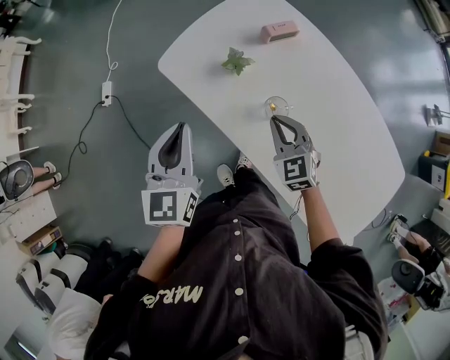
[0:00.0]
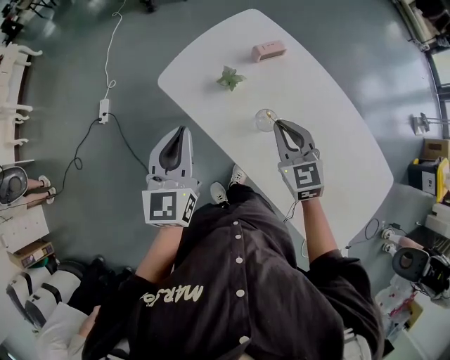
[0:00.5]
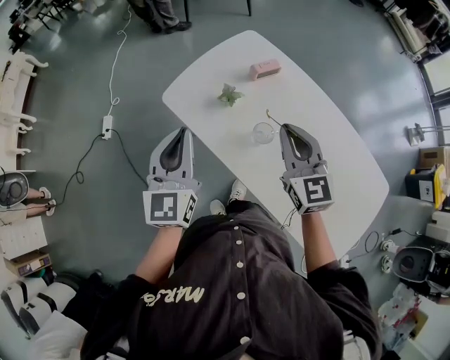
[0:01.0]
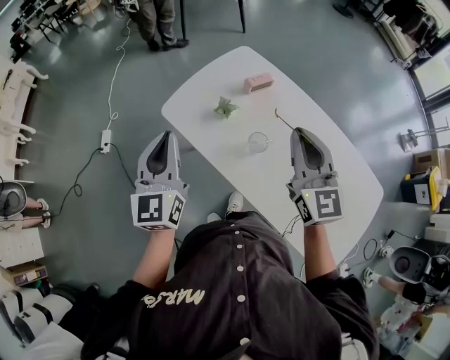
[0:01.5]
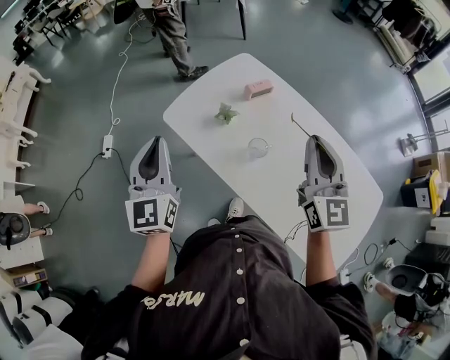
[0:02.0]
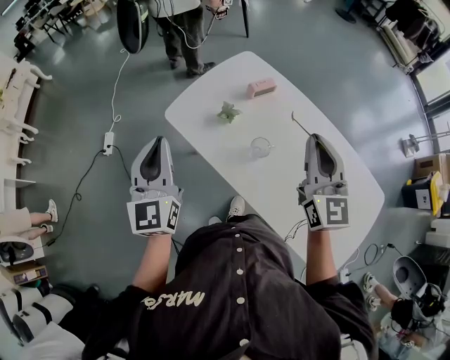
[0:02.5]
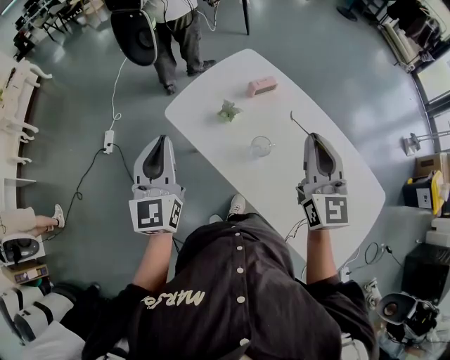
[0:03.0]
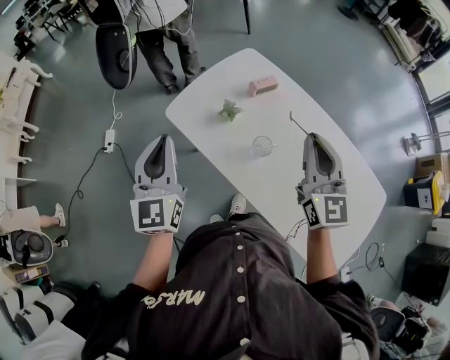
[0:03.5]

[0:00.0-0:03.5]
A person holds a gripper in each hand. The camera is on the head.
0:00.0 to 0:02.0: The right gripper heads upward, covering some 30 cm, and angles its fingers upward, by roughly 40 degrees. Meanwhile the left gripper goes roughly 10 cm upward.
0:02.0 to 0:03.5: The grippers stay close to where they were, moving slightly.

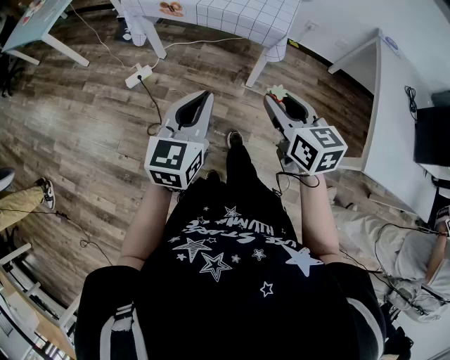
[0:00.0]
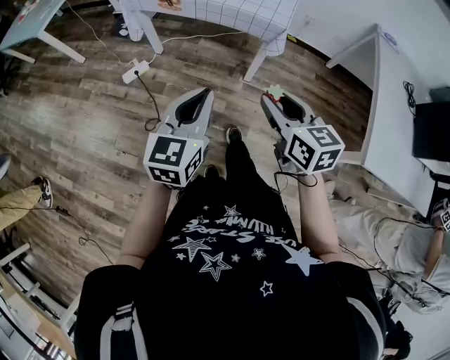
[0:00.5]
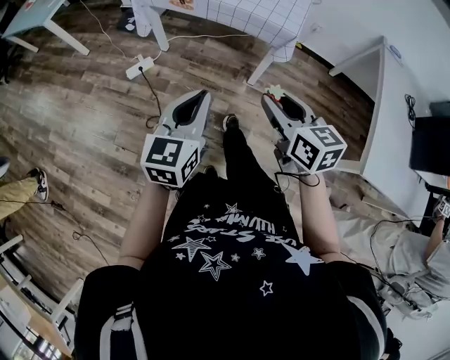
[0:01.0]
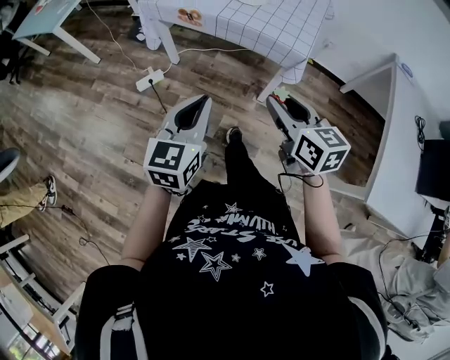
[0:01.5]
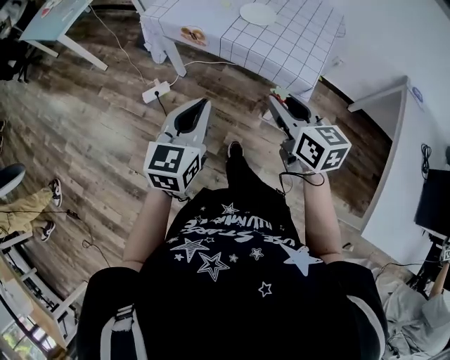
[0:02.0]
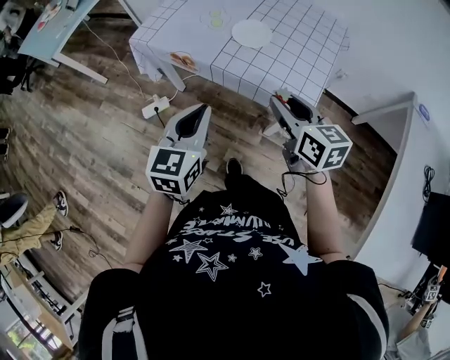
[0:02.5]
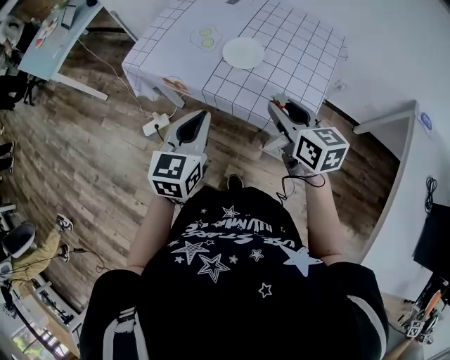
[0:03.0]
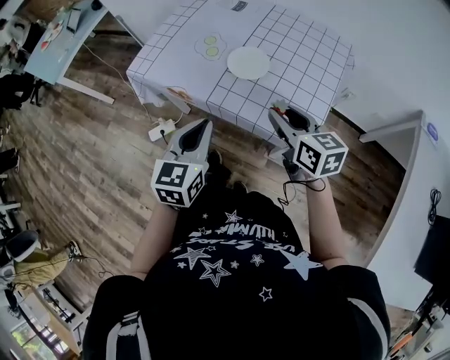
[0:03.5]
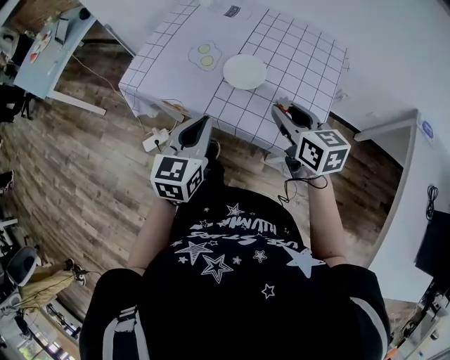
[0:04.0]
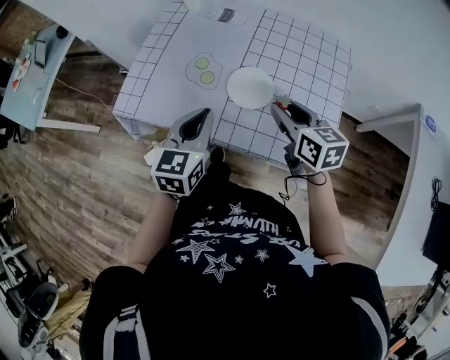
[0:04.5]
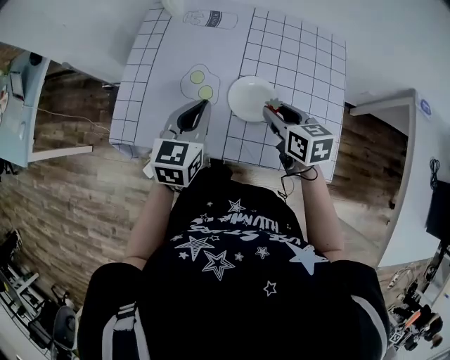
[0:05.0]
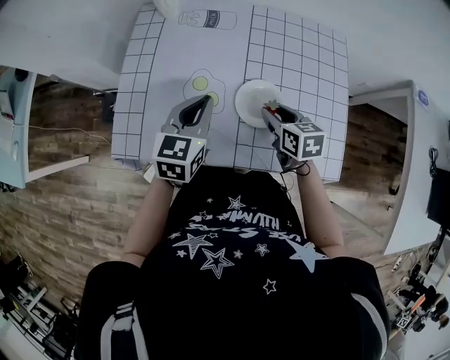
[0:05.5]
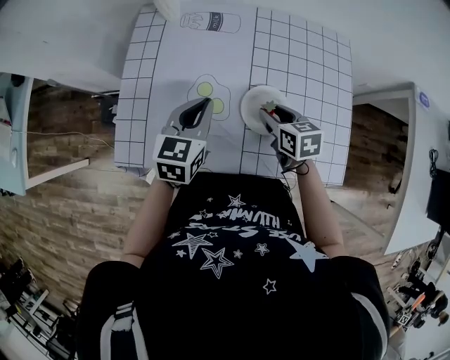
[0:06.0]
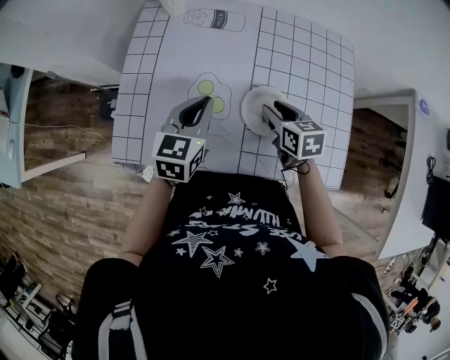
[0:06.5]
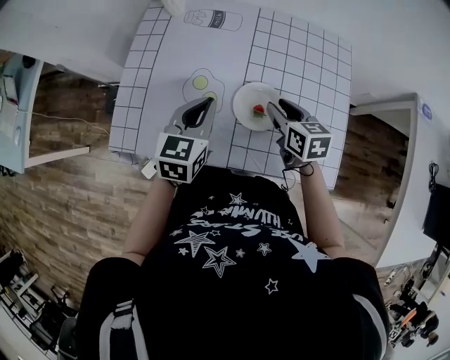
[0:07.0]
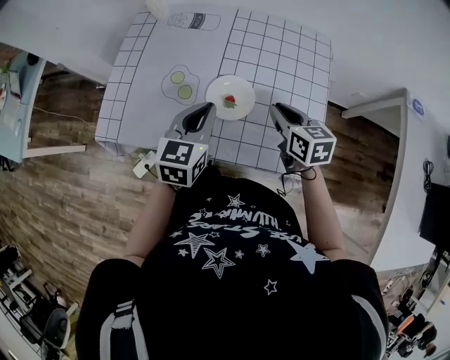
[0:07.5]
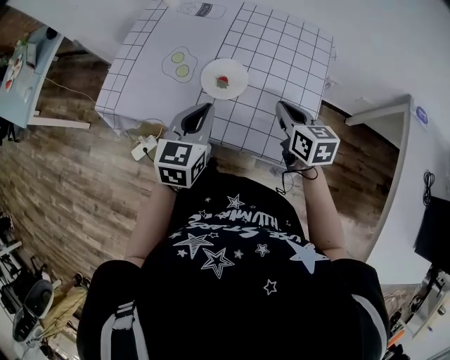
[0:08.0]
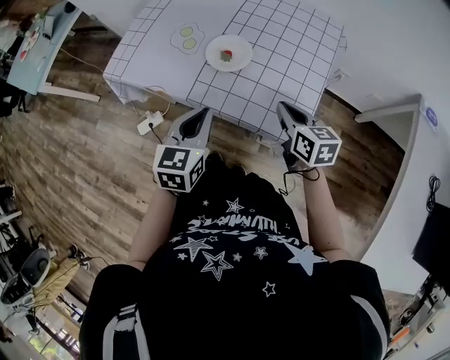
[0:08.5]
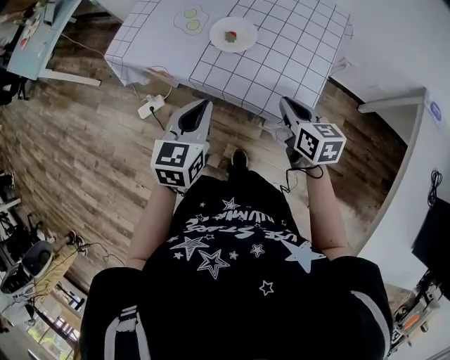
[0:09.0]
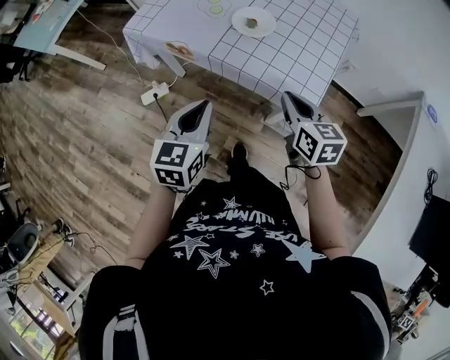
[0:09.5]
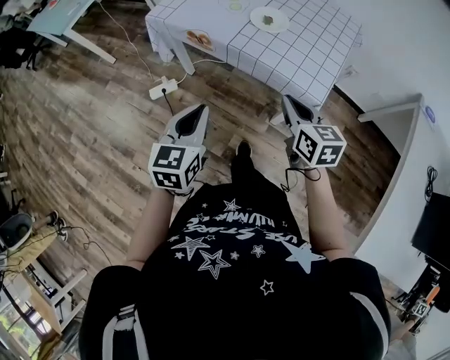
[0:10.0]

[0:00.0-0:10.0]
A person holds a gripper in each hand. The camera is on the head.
0:00.0 to 0:02.0: The grippers both shift forward by about 20 cm.
0:02.0 to 0:04.0: The two grippers go about 25 cm forward.
0:04.0 to 0:06.0: The right gripper heads forward, downward and to the left, covering approximately 25 cm, and rotates about 30 degrees, while the left gripper shifts about 25 cm forward, and rotates about 20 degrees.
0:06.0 to 0:08.0: The left gripper heads backward and to the right, covering approximately 20 cm. Meanwhile the right gripper heads to the right, backward and upward, covering roughly 20 cm, and closes.
0:08.0 to 0:10.0: The two grippers go some 30 cm backward and to the left.

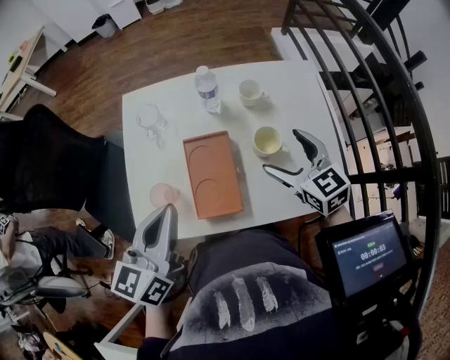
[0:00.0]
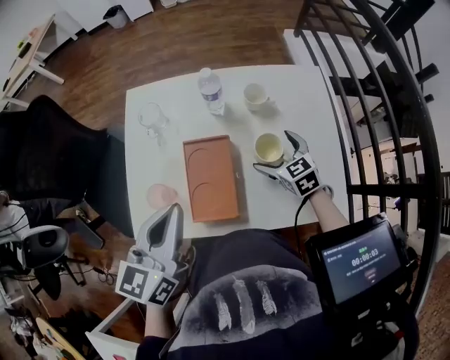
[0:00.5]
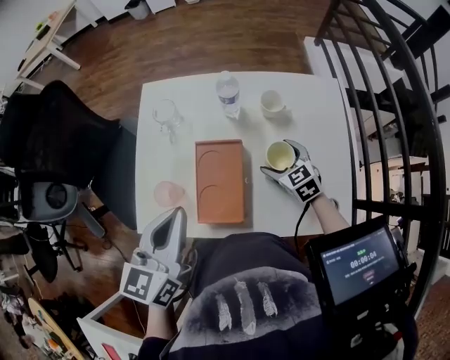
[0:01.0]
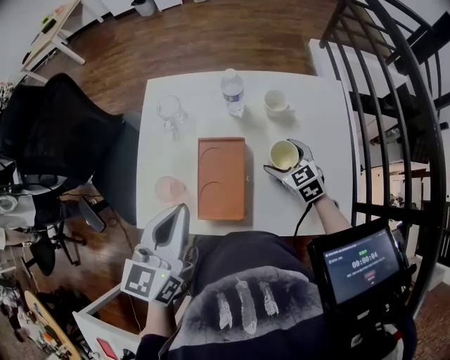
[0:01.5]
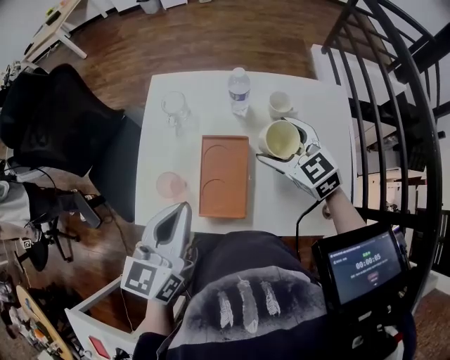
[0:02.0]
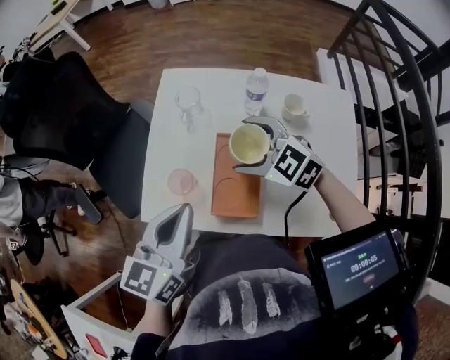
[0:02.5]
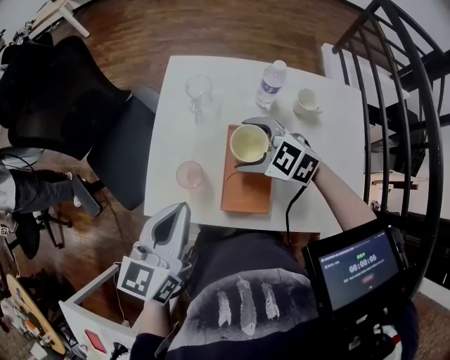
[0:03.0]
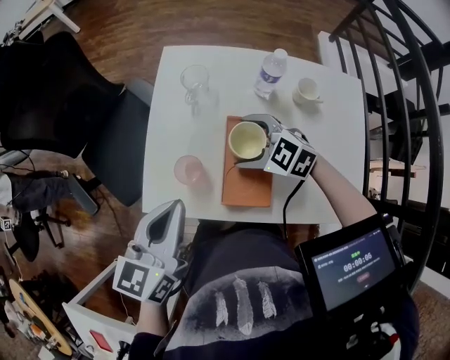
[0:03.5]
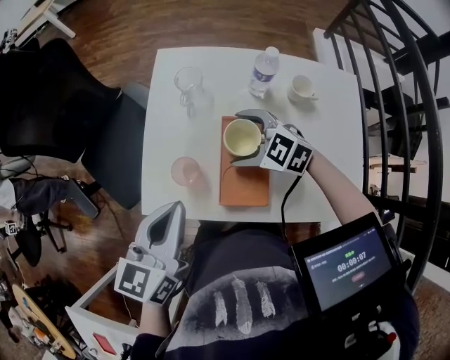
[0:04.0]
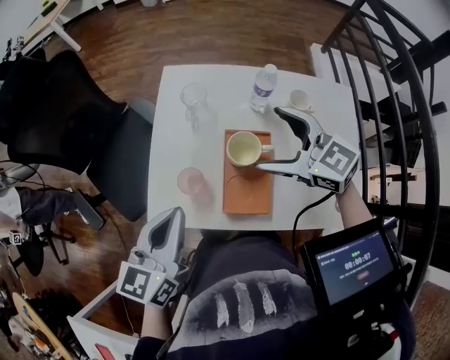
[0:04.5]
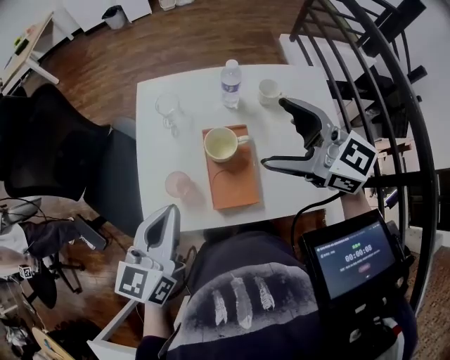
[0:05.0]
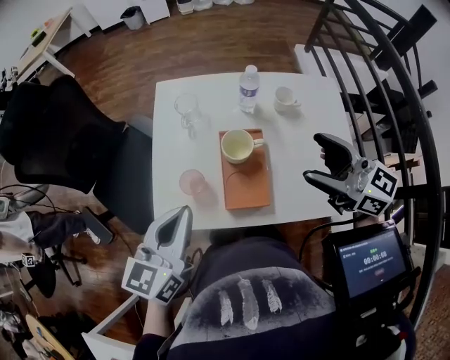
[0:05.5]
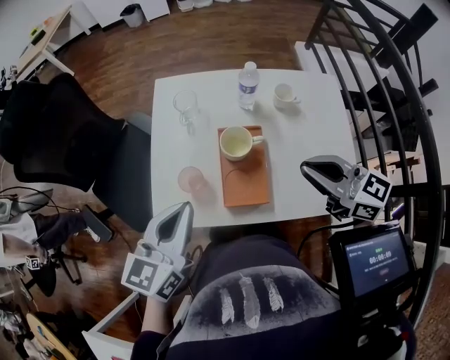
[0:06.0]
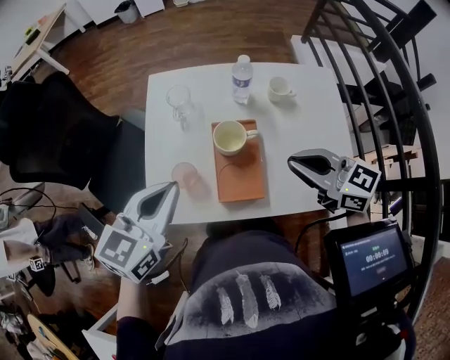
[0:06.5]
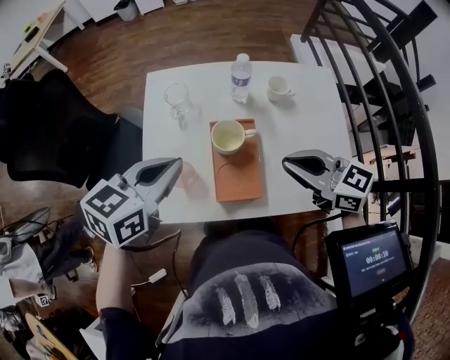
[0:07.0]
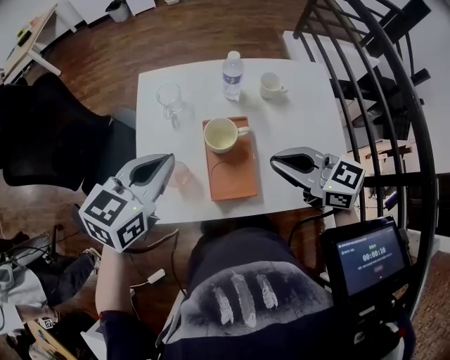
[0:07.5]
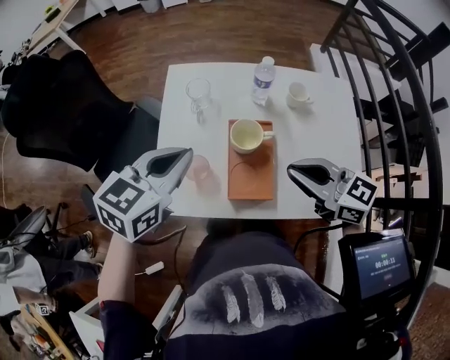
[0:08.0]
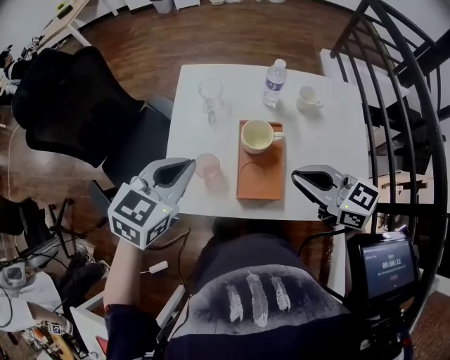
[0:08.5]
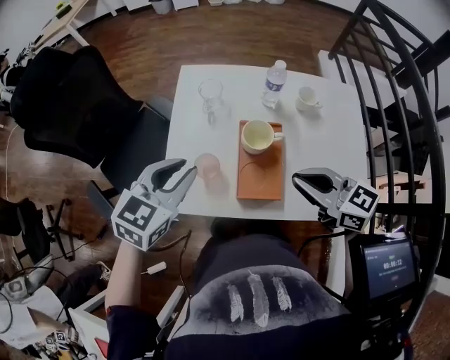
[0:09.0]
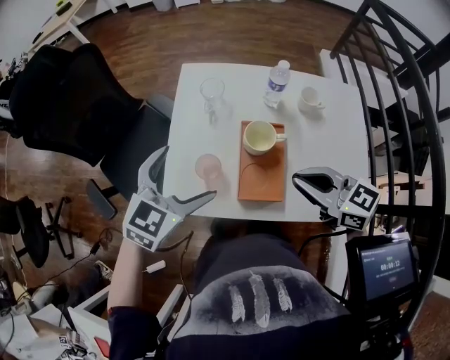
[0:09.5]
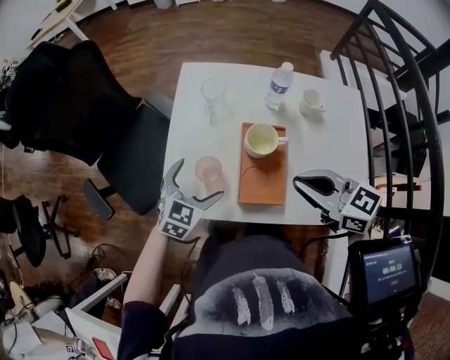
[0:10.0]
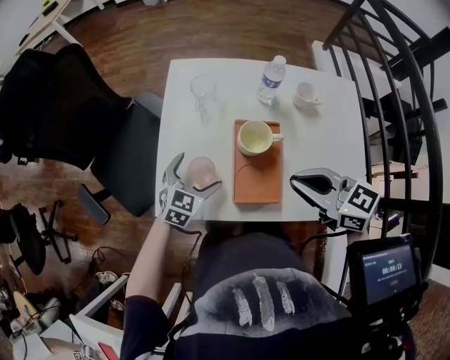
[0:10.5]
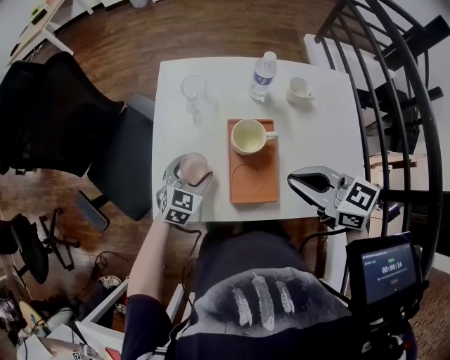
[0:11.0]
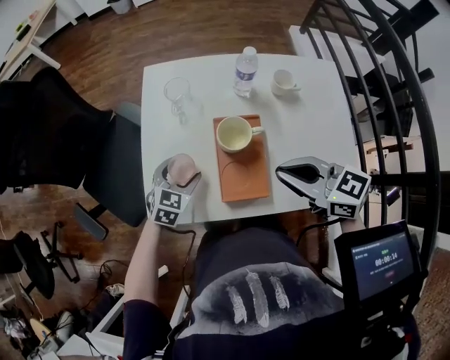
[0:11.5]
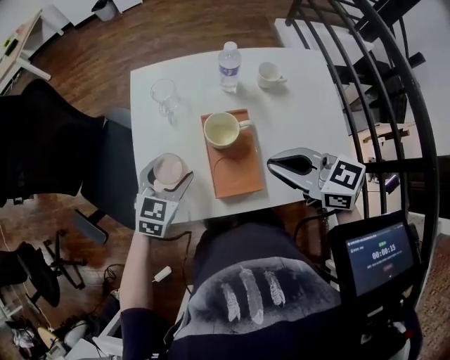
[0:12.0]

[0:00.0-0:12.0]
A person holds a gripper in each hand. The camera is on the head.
0:00.0 to 0:02.0: The right gripper goes approximately 10 cm forward and to the left, reaches about 15 cm downward, then returns, and changes its angle by some 20 degrees.
0:02.0 to 0:04.0: The left gripper heads to the left, covering roughly 10 cm, while the right gripper heads to the left and downward, covering some 20 cm, and rotates approximately 30 degrees.
0:04.0 to 0:06.0: The right gripper travels upward, backward and to the right by approximately 25 cm, swivels approximately 50 degrees, and closes.
0:06.0 to 0:08.0: The right gripper moves roughly 5 cm. The left gripper heads forward, covering some 10 cm.
0:08.0 to 0:10.0: The left gripper travels downward by approximately 15 cm, and opens its fingers.
0:10.0 to 0:12.0: The left gripper closes its fingers.

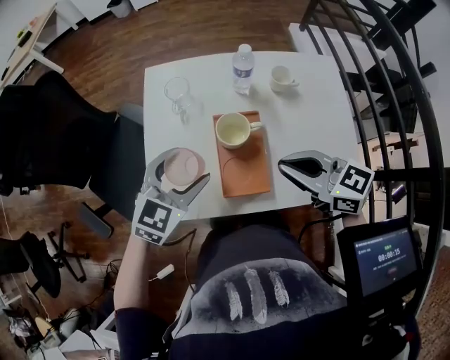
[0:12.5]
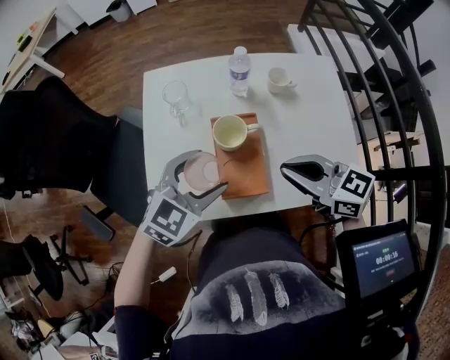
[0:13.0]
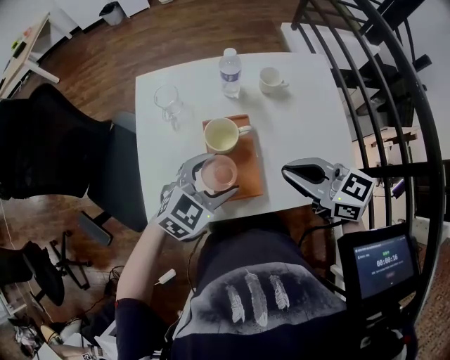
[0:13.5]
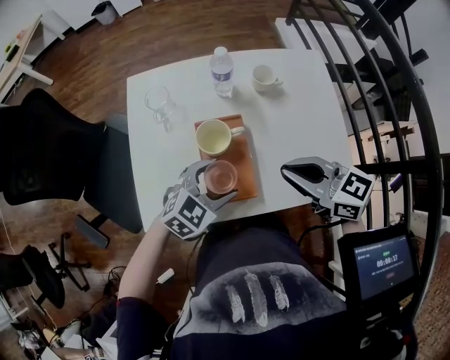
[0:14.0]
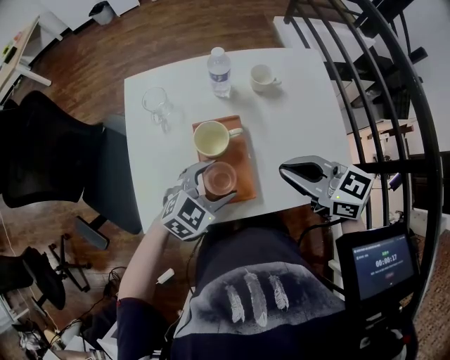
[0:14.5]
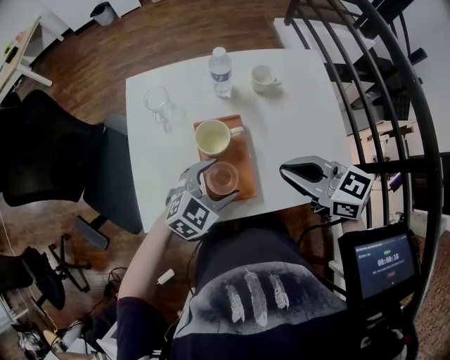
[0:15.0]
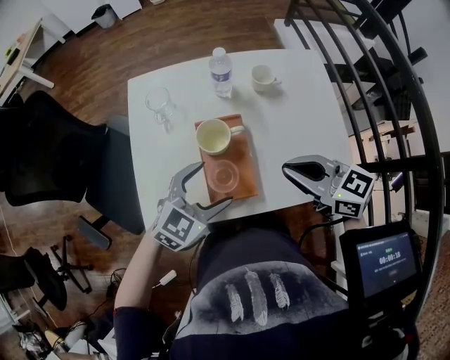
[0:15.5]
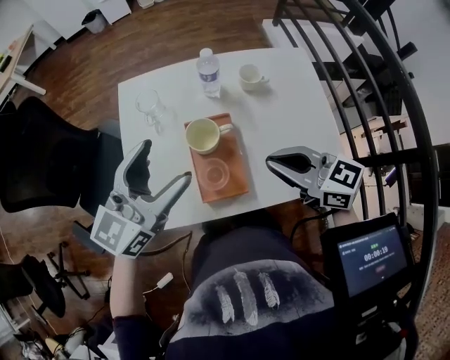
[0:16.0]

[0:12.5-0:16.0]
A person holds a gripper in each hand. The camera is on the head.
0:12.5 to 0:14.5: The right gripper heads to the right, covering approximately 5 cm; the left gripper goes some 15 cm to the right and downward, and changes its angle by roughly 20 degrees.
0:14.5 to 0:16.0: The left gripper heads upward and to the left, covering roughly 20 cm, and angles its fingers upward, by about 30 degrees.
